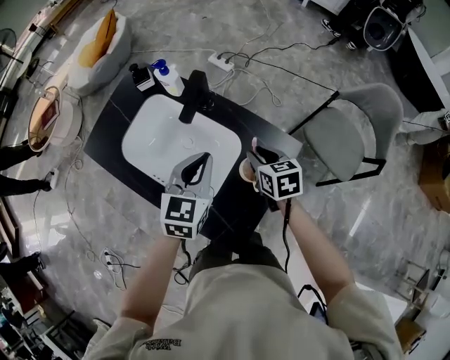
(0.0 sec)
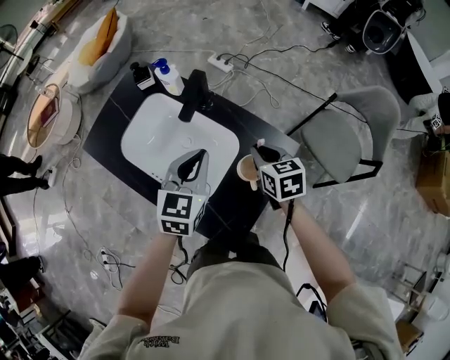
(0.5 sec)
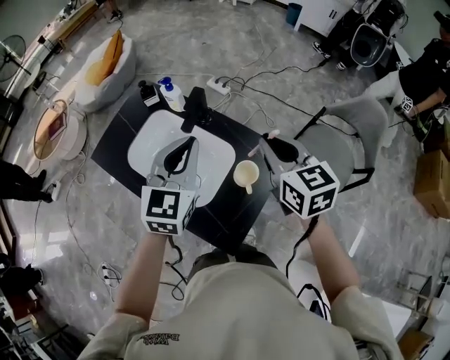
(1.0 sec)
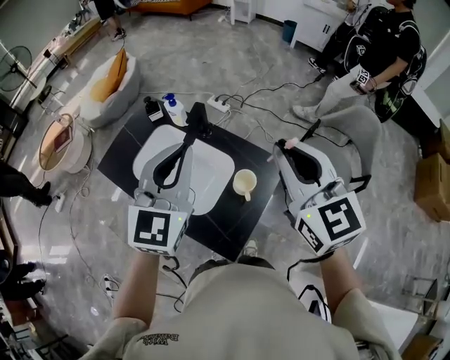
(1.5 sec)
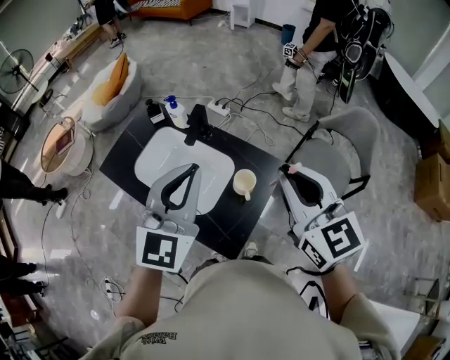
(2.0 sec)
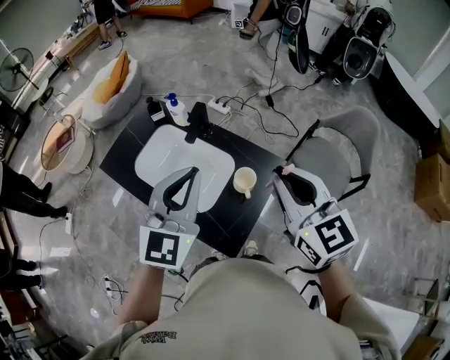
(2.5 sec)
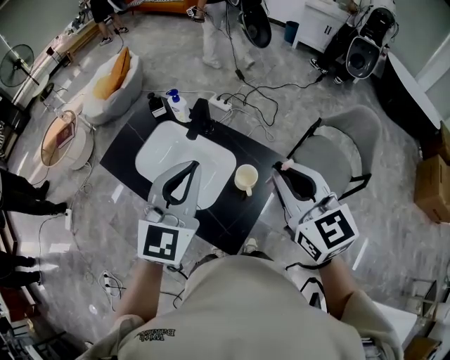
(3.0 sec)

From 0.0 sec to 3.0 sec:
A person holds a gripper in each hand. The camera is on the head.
From 0.0 sec to 1.5 sec: The right gripper moves upward, about 35 cm, tips its fingers upward by some 40 degrees, and closes its fingers; the left gripper moves upward, approximately 25 cm, and turns by approximately 30 degrees.
From 1.5 sec to 3.0 sec: The right gripper moves about 5 cm. The left gripper moves some 5 cm.

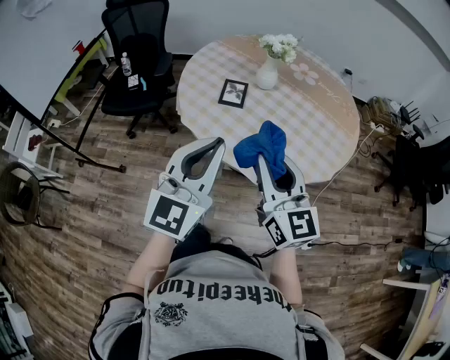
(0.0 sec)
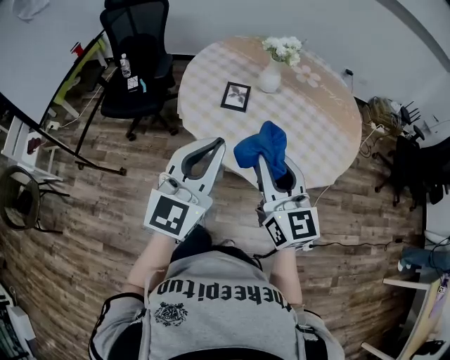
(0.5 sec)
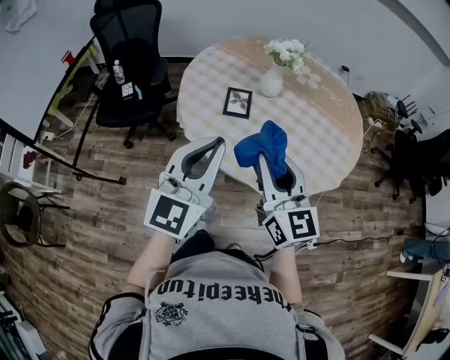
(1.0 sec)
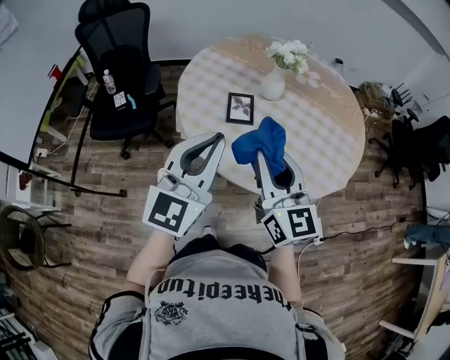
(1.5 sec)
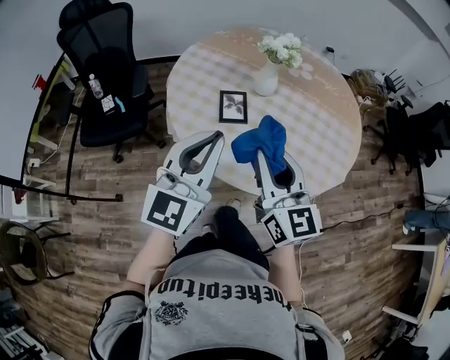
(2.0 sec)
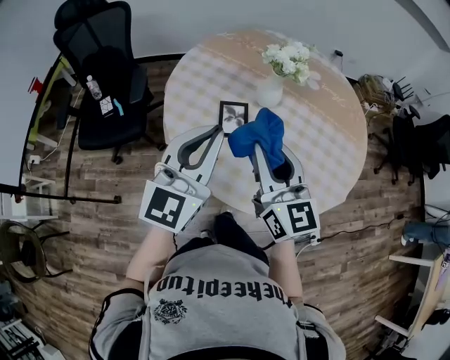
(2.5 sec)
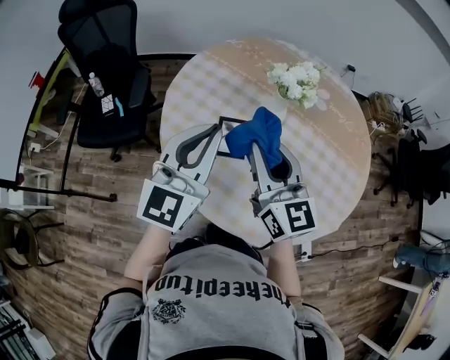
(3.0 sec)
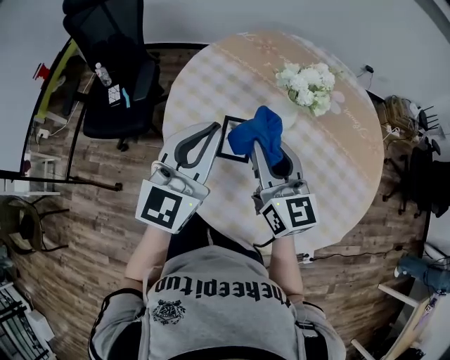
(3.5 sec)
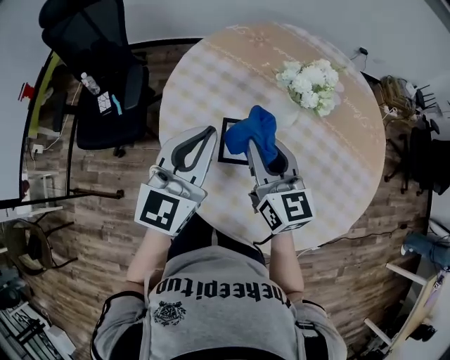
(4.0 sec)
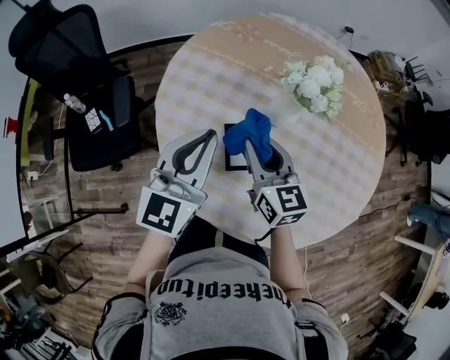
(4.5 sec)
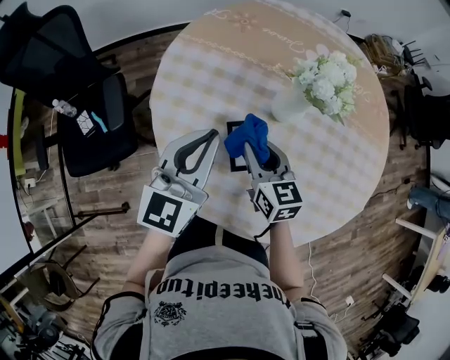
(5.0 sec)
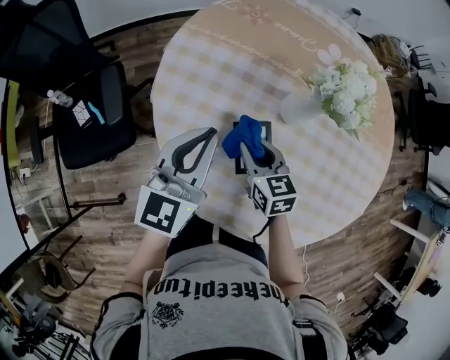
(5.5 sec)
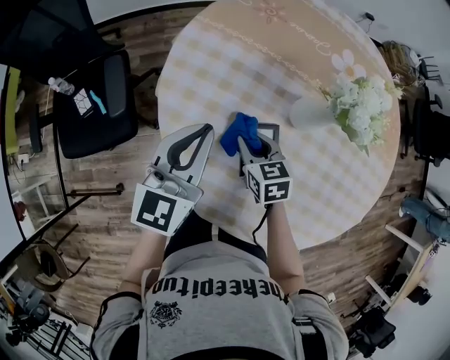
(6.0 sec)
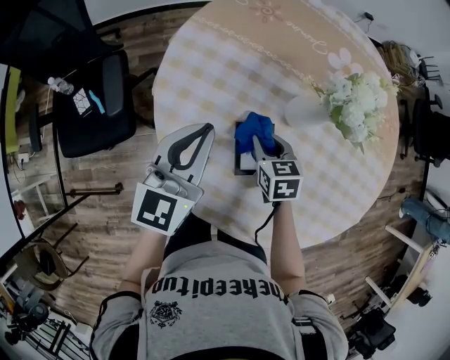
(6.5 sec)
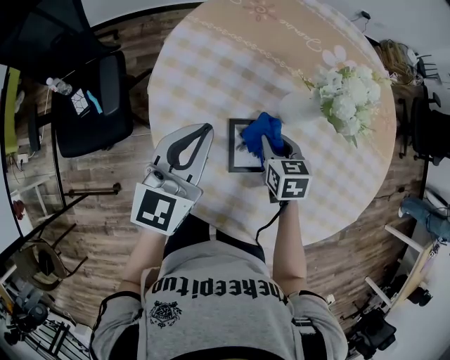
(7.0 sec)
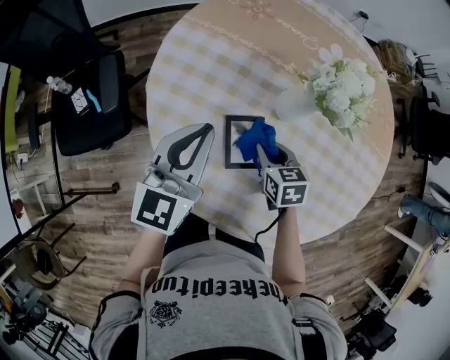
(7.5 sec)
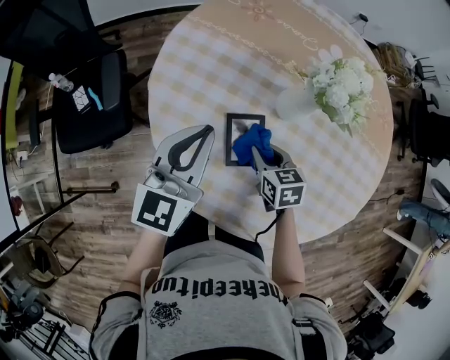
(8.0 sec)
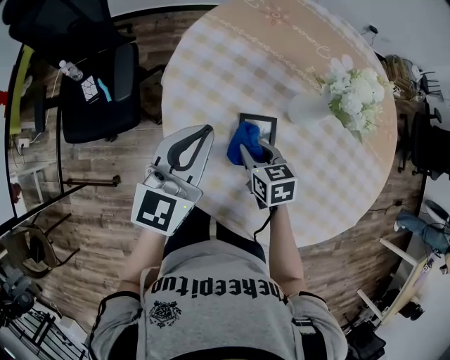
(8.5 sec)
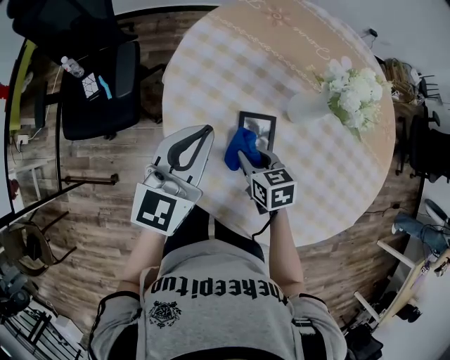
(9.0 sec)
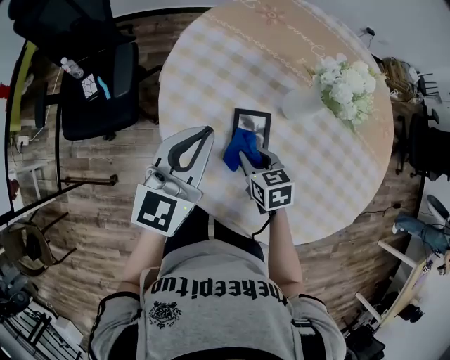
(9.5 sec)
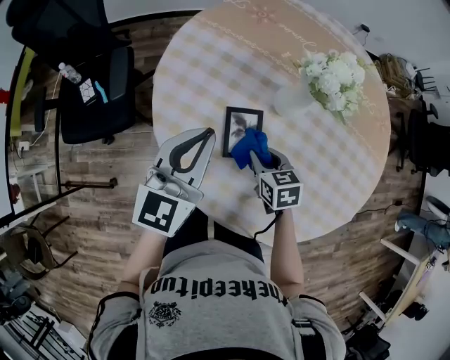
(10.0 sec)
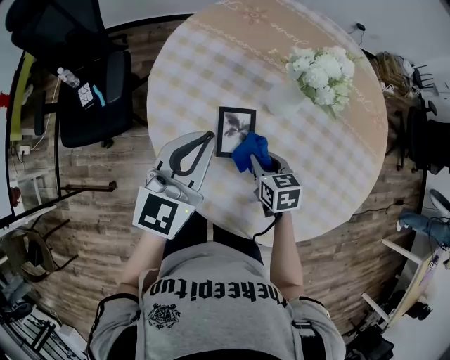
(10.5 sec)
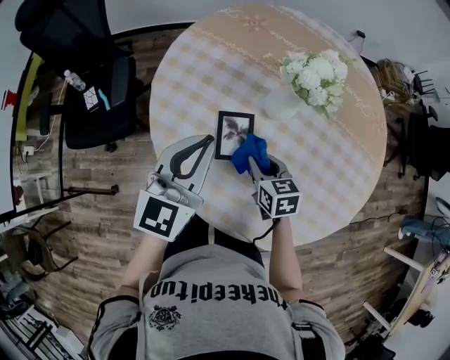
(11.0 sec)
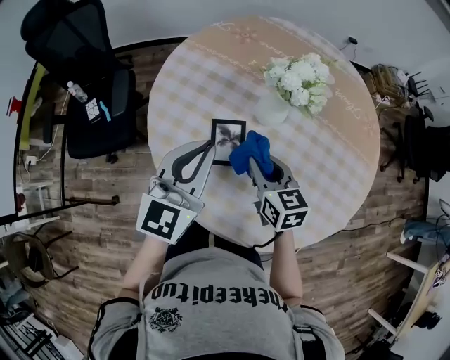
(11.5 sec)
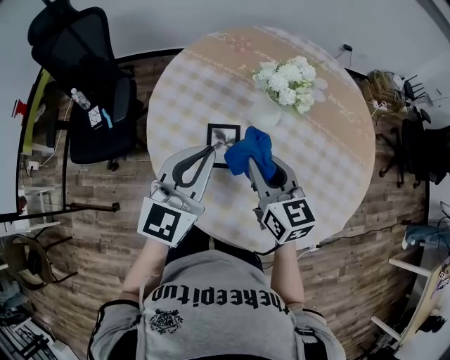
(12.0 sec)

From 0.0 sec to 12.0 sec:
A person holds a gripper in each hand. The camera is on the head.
From 0.0 sec to 2.0 sec: Both grippers move forward and to the left, approximately 15 cm.
From 2.0 sec to 4.0 sec: The two grippers go roughly 25 cm forward.
From 4.0 sec to 6.0 sec: The left gripper goes some 15 cm downward, forward and to the left, while the right gripper is displaced downward by some 20 cm, and points its fingers roughly 40 degrees further downward.
From 6.0 sec to 8.0 sec: The right gripper moves to the right, roughly 10 cm, while the left gripper changes place by about 5 cm.
From 10.0 sec to 12.0 sec: The right gripper moves upward, about 20 cm, and angles its fingers upward, by roughly 30 degrees, while the left gripper goes about 10 cm to the right, upward and backward.

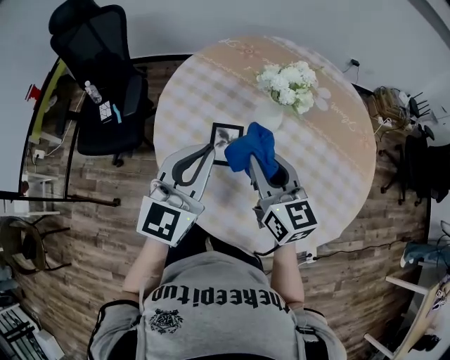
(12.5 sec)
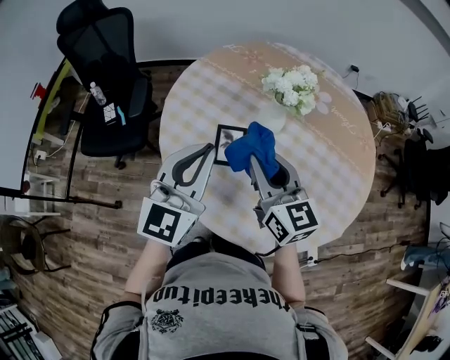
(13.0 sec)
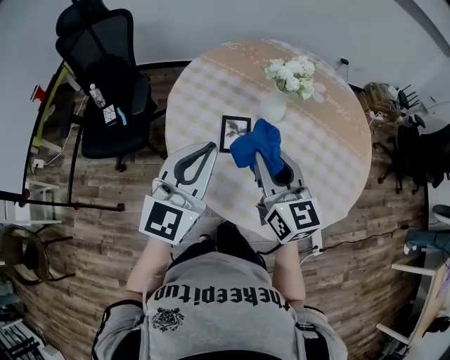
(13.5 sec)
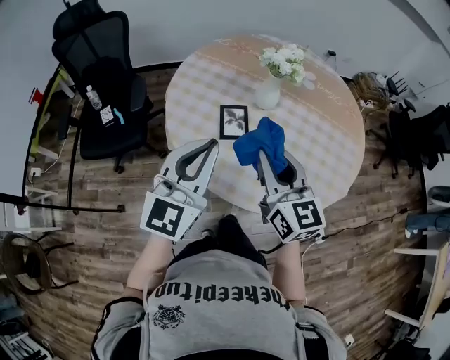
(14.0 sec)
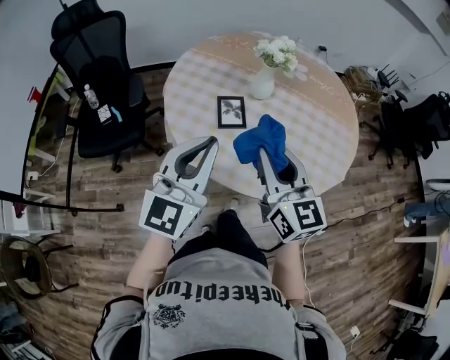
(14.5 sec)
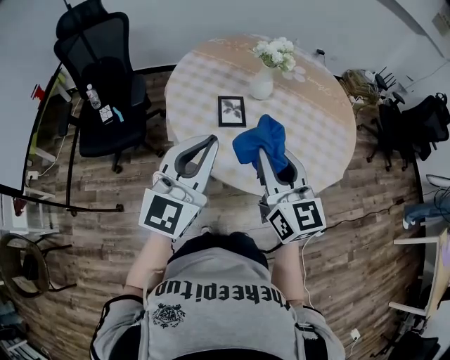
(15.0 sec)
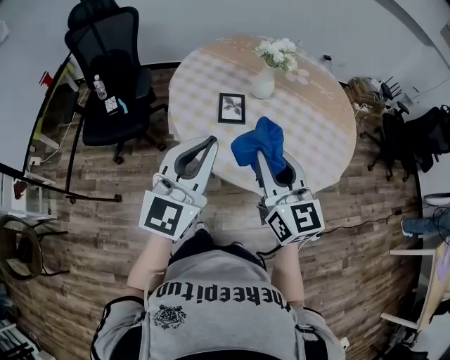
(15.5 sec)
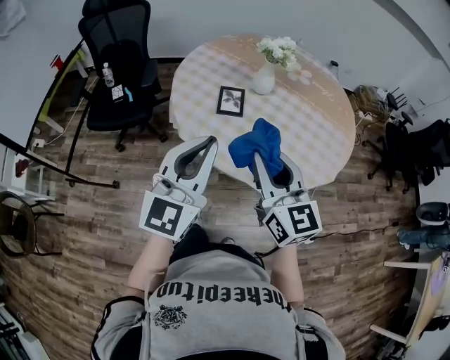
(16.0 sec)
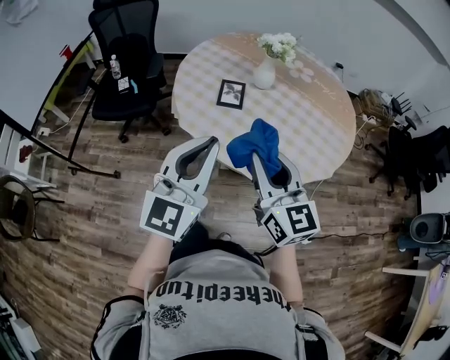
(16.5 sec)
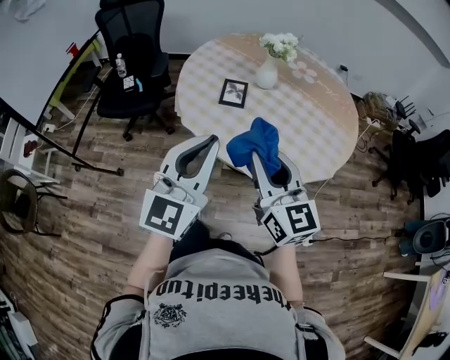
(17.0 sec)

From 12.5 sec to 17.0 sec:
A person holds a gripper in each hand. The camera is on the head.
From 12.5 sec to 14.5 sec: The grippers both shift backward by approximately 20 cm.
From 14.5 sec to 17.0 sec: Both grippers travel together backward and to the right, some 15 cm.

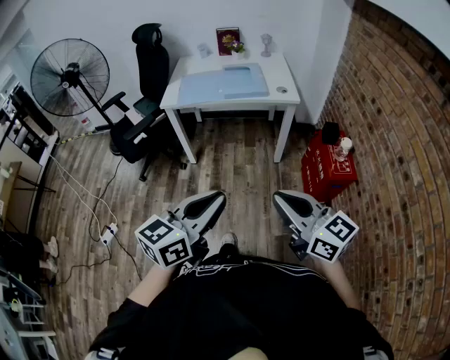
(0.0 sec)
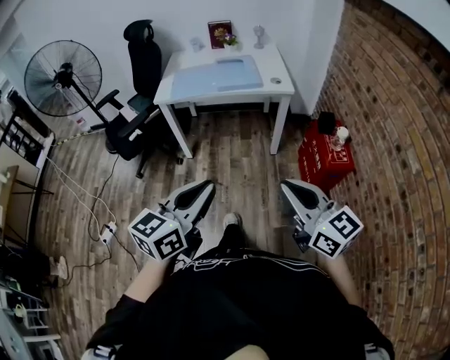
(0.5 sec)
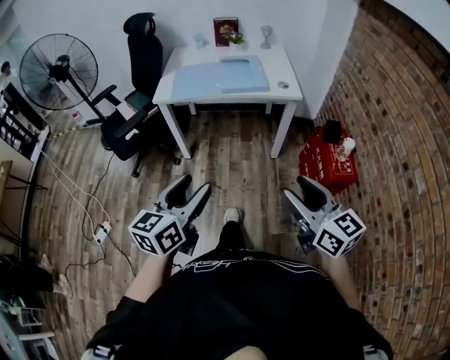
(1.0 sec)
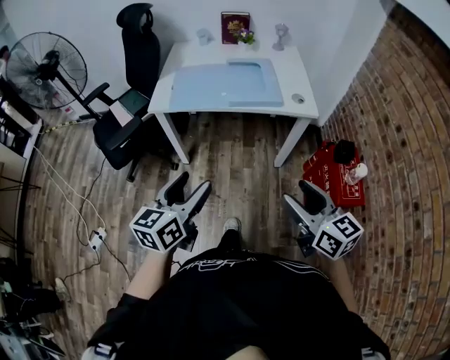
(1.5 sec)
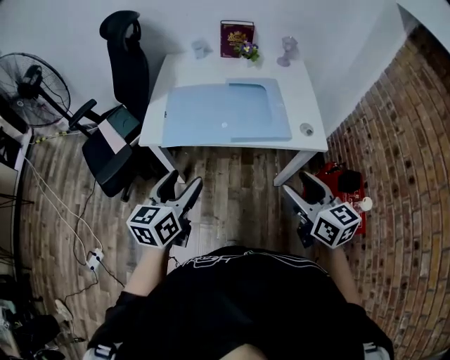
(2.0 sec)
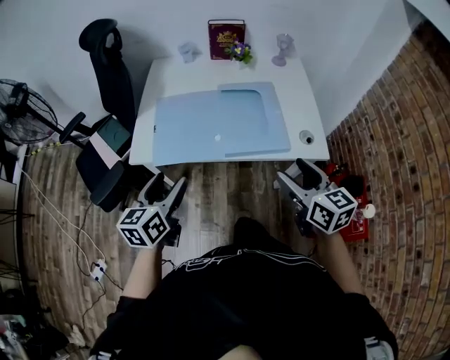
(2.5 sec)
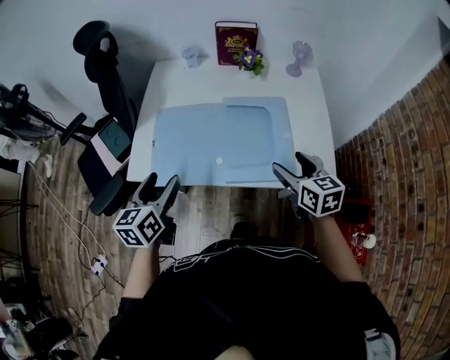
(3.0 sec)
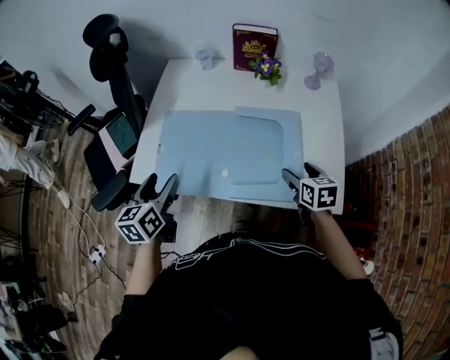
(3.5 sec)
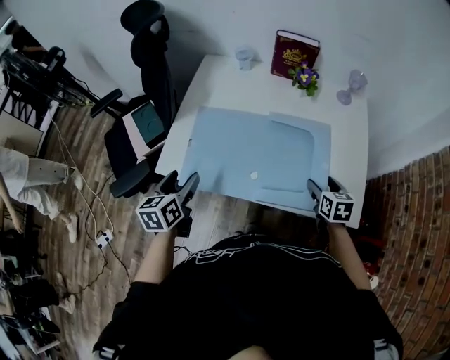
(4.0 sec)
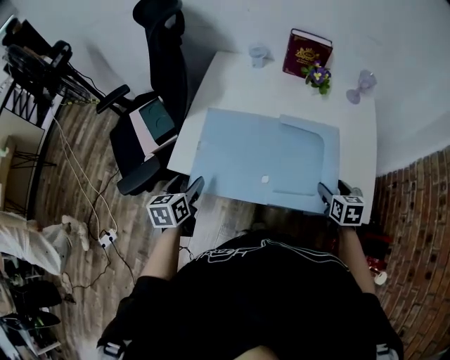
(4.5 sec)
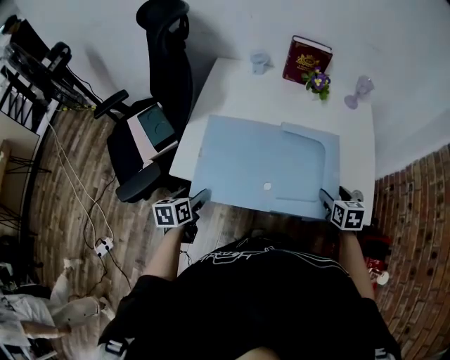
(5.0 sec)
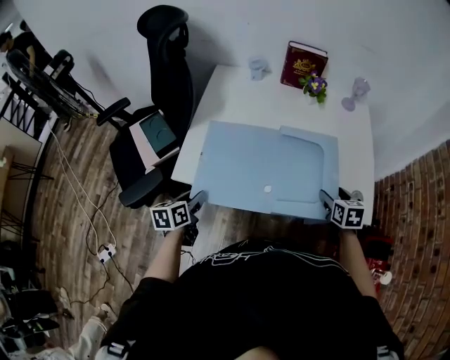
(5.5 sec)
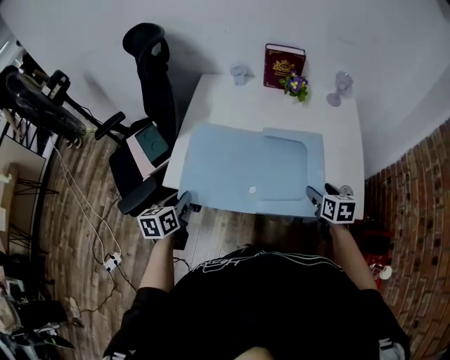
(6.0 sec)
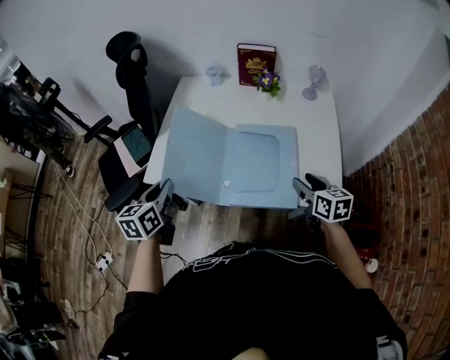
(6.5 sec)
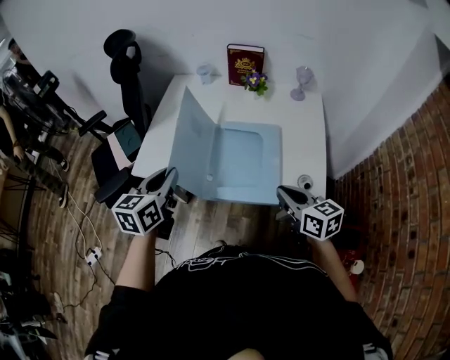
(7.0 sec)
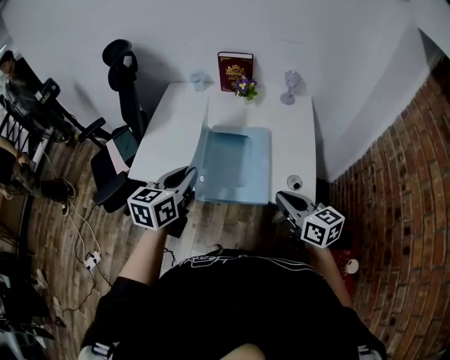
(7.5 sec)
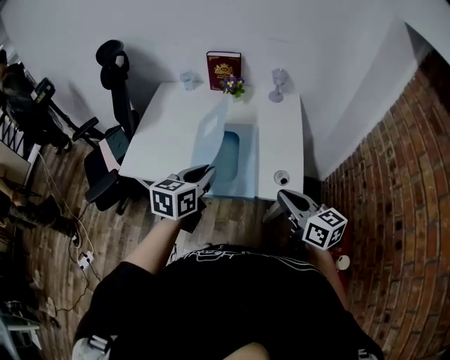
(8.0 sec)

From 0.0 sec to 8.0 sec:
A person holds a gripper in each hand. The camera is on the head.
From 0.0 sec to 2.0 sec: Both grippers are carried forward, some 40 cm. The left gripper rotates roughly 20 degrees, and opens its fingers; the right gripper changes its angle by approximately 20 degrees, and opens up.
From 2.0 sec to 4.0 sec: The right gripper moves forward and downward, roughly 35 cm, and changes its angle by approximately 30 degrees, while the left gripper goes approximately 25 cm forward and downward, and turns by approximately 30 degrees.
From 4.0 sec to 6.0 sec: The left gripper reaches about 10 cm downward, then returns, and closes up.
From 6.0 sec to 8.0 sec: The right gripper moves upward and backward, roughly 20 cm, tips its fingers upward by approximately 30 degrees, and closes its fingers; the left gripper goes roughly 35 cm to the right, and turns by about 20 degrees.
